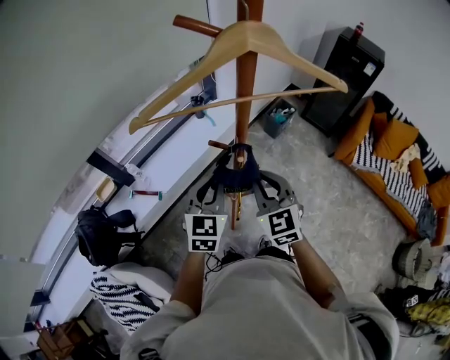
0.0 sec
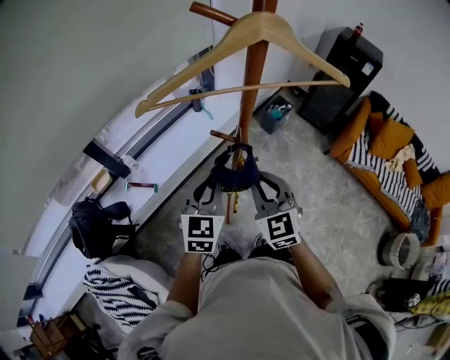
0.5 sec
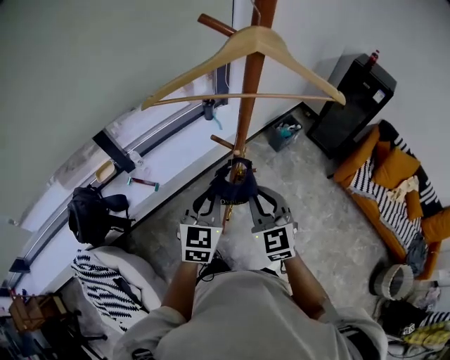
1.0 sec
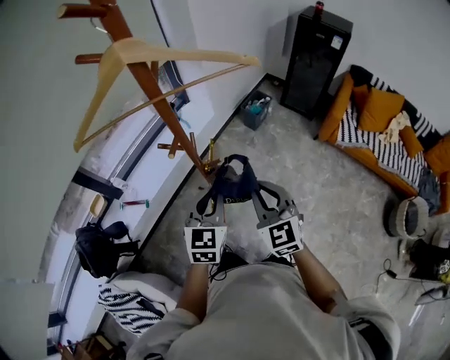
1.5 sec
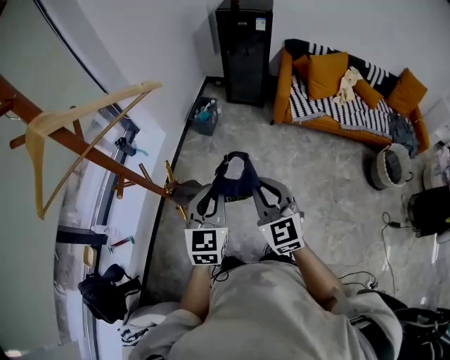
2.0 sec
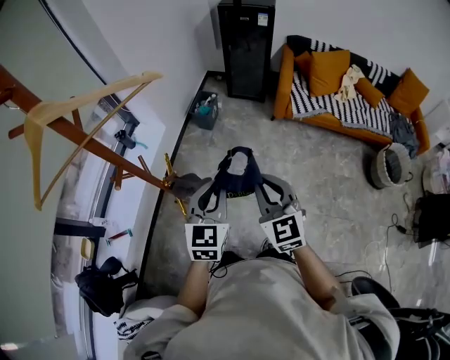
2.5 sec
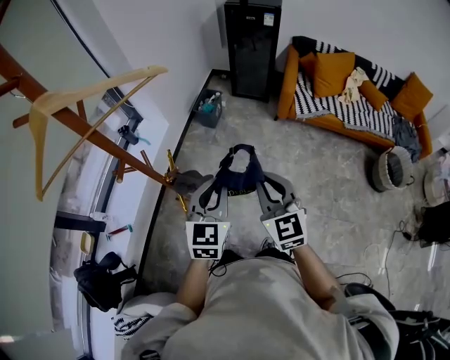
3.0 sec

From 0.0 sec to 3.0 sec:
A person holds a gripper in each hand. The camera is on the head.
From 0.0 sec to 1.5 sec: Both grippers move to the right and backward, about 15 cm.
From 1.5 sec to 3.0 sec: The grippers both shift to the right by roughly 15 cm. The right gripper rotates about 20 degrees.

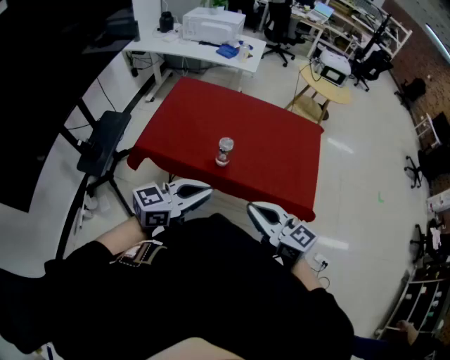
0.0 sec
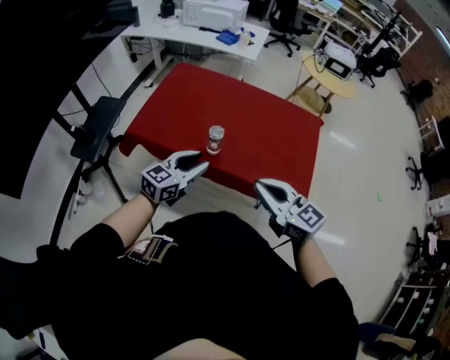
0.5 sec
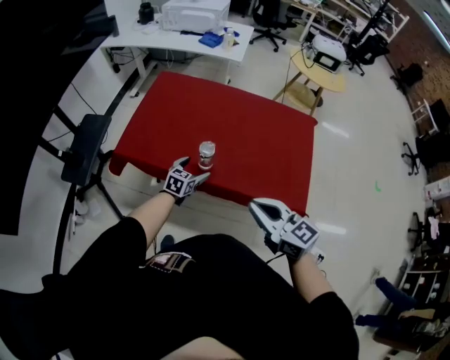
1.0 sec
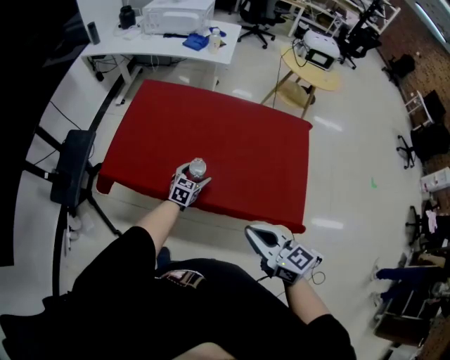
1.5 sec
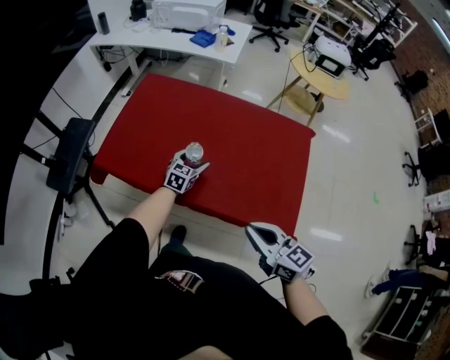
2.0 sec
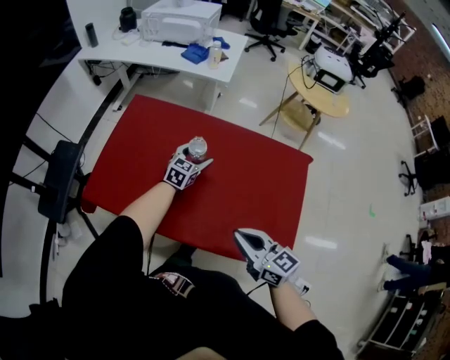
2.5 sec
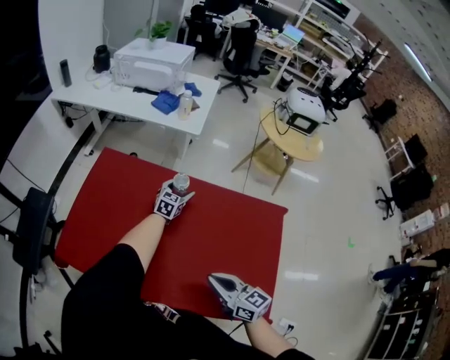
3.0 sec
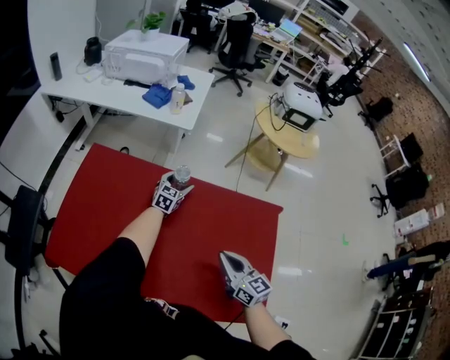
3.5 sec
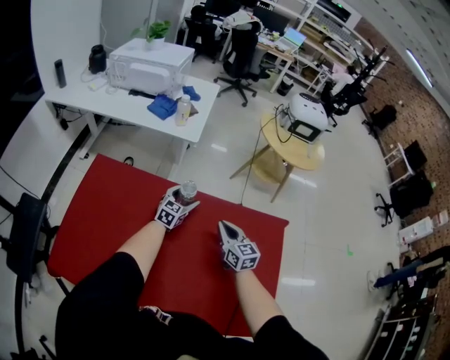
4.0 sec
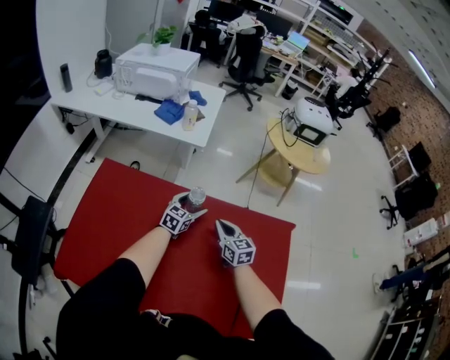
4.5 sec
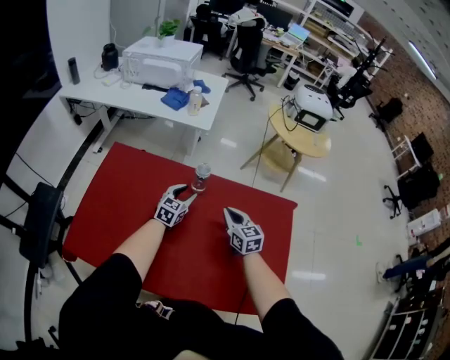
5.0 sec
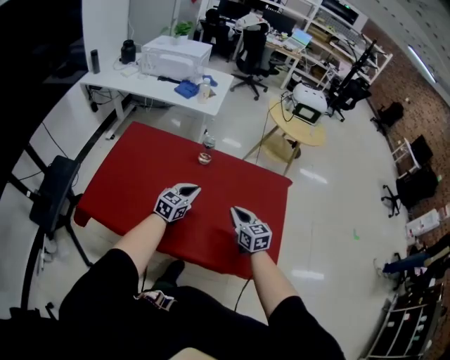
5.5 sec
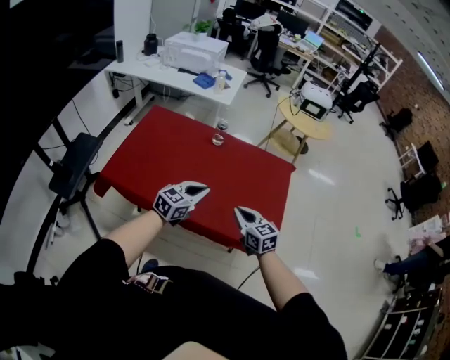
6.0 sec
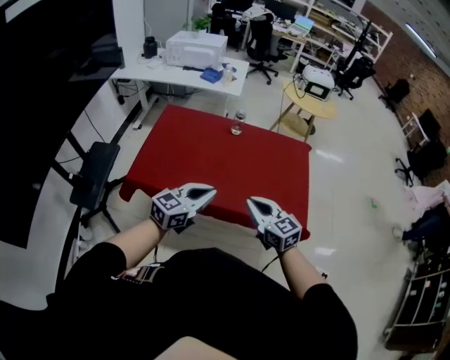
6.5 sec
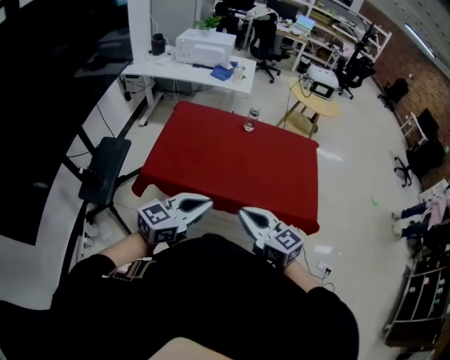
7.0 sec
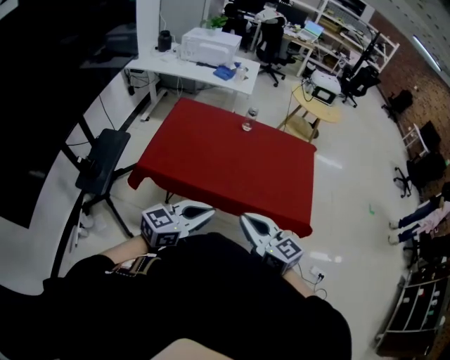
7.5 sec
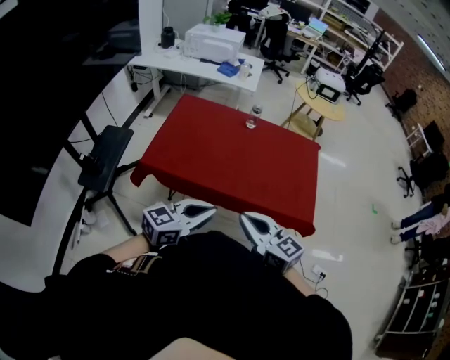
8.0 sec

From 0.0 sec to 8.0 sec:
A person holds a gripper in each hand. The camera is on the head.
From 0.0 sec to 2.0 sec: The left gripper goes some 50 cm forward and downward, turns by about 40 degrees, and opens its fingers. Meanwhile the right gripper shifts roughly 20 cm to the right, forward and downward.
From 2.0 sec to 4.0 sec: The grippers both shift forward by roughly 40 cm. The right gripper changes its angle by about 30 degrees.
From 4.0 sec to 6.0 sec: Both grippers are carried backward, some 50 cm. The left gripper goes approximately 20 cm upward, and closes.
From 6.0 sec to 8.0 sec: The right gripper goes some 30 cm backward, to the left and upward; the left gripper shifts roughly 30 cm backward and to the left.

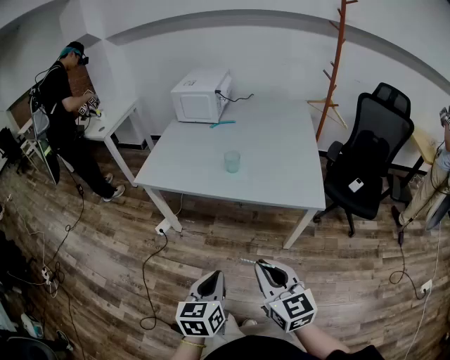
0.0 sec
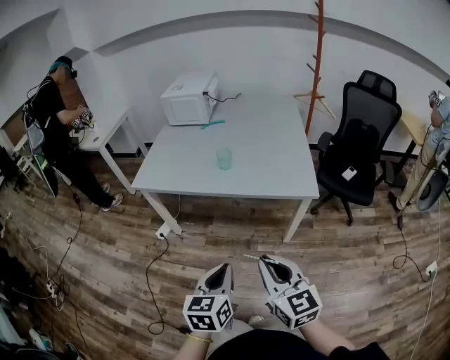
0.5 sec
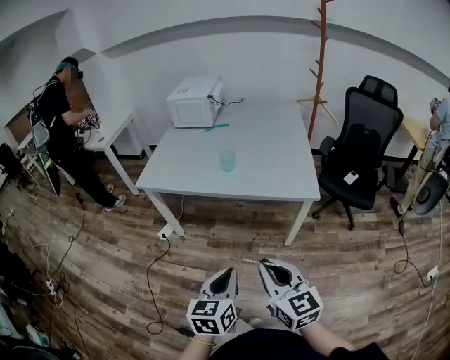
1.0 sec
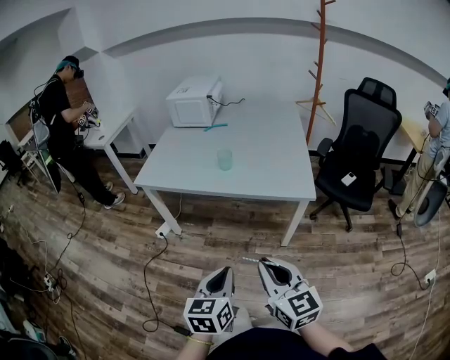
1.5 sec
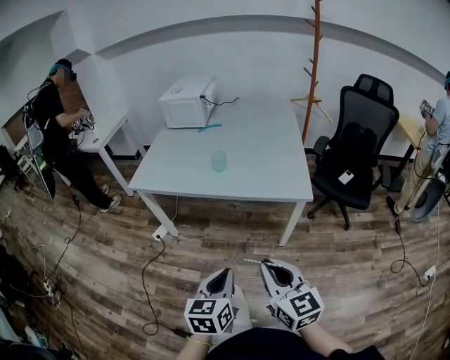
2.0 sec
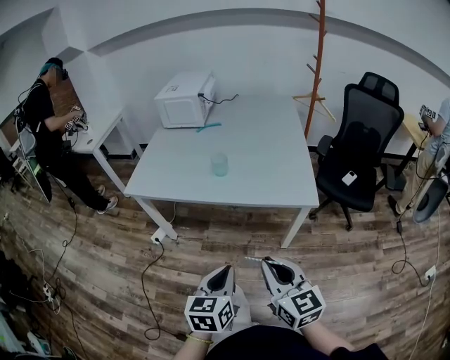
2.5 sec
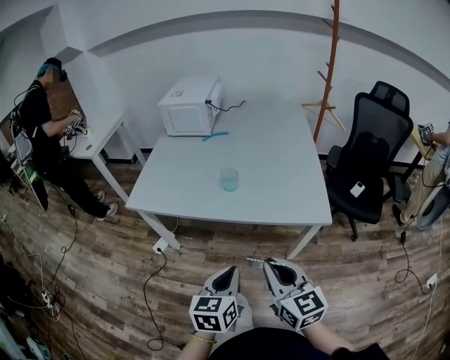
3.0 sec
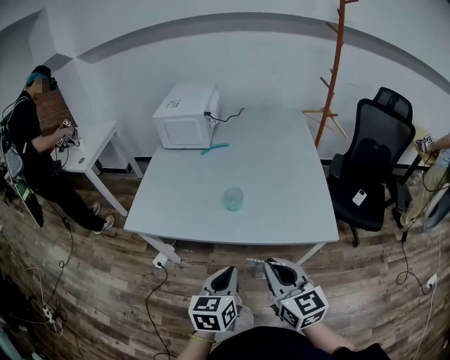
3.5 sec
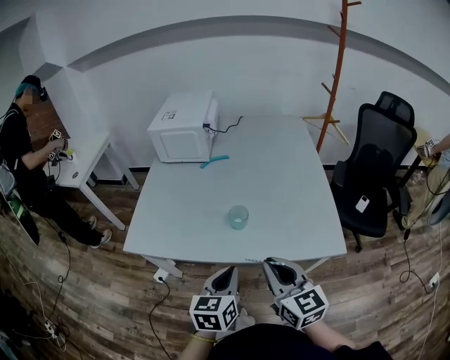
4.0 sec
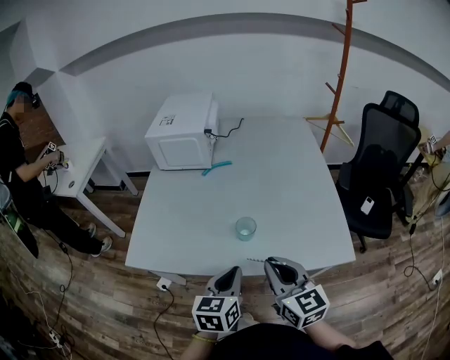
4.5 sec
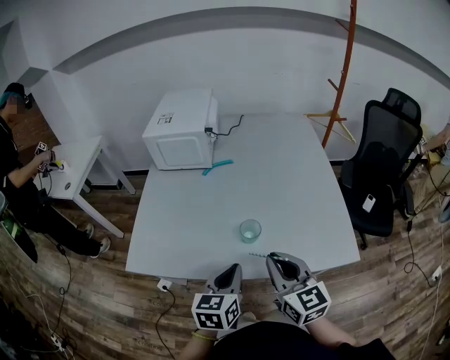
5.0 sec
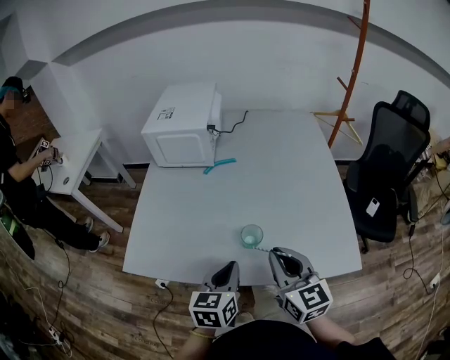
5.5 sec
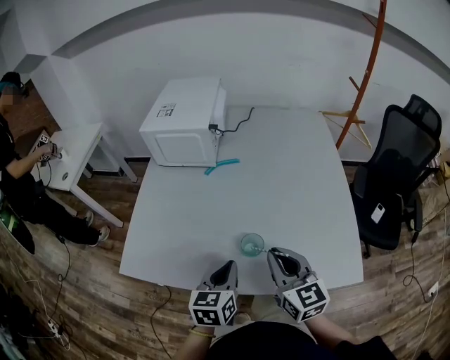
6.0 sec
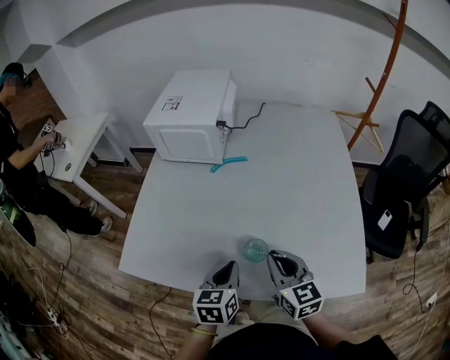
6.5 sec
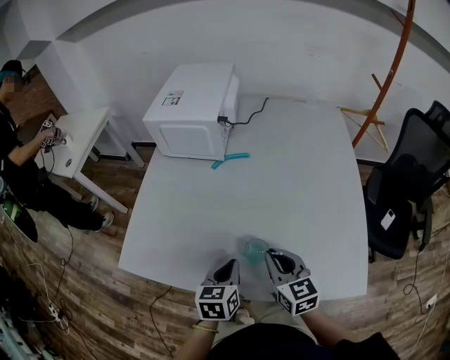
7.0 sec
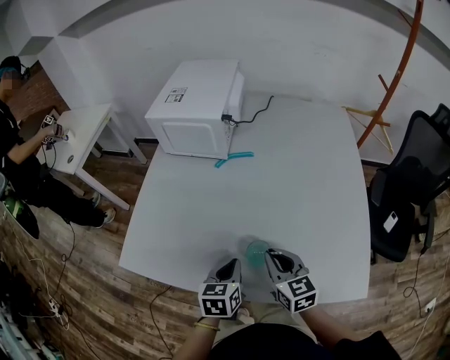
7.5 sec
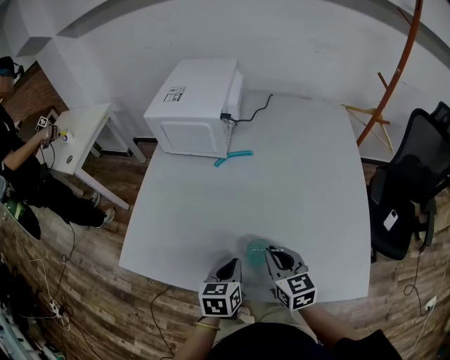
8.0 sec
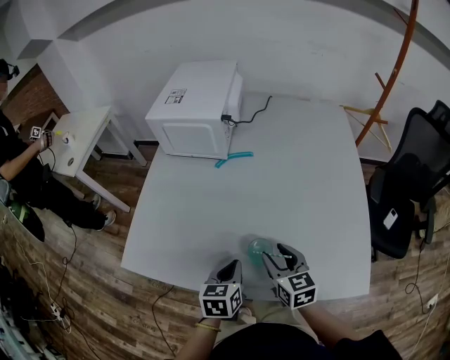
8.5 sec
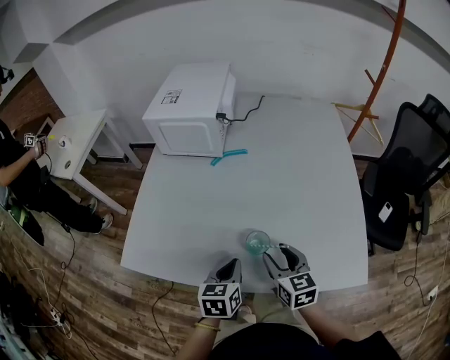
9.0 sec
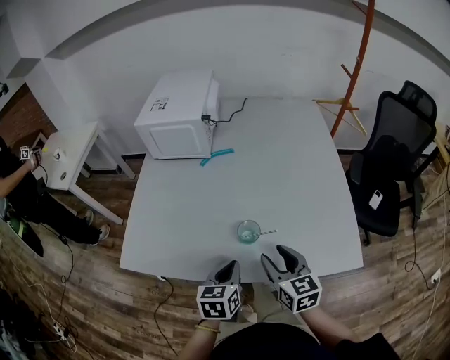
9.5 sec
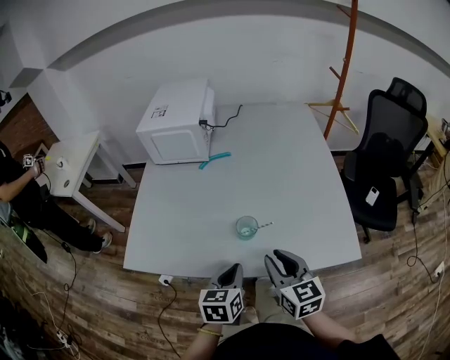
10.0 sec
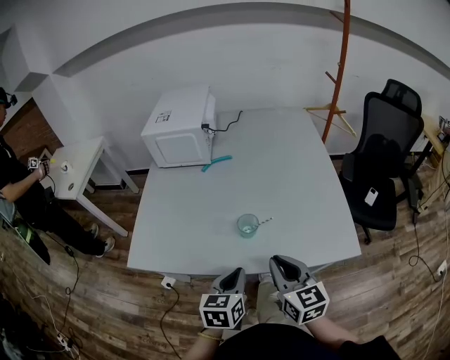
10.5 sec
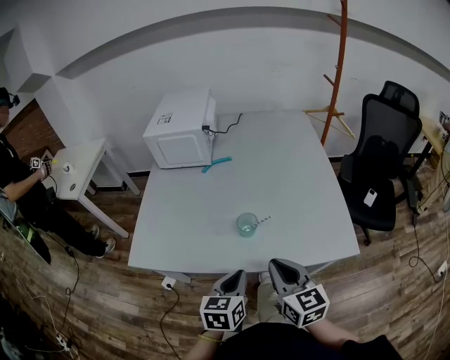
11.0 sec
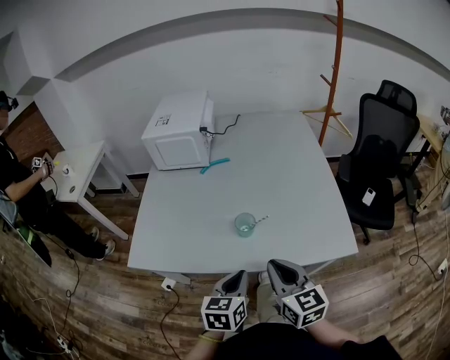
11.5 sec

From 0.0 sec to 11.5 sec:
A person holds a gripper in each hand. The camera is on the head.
From 0.0 sec to 2.0 sec: The two grippers go about 5 cm to the right.
From 2.0 sec to 4.0 sec: The two grippers go roughly 30 cm forward.
From 4.0 sec to 6.0 sec: Both grippers move forward, approximately 15 cm.
From 6.0 sec to 7.5 sec: The grippers both shift downward by about 10 cm.
From 7.5 sec to 9.5 sec: Both grippers move backward, about 5 cm. The right gripper opens up.
From 9.5 sec to 11.5 sec: The left gripper heads backward, covering some 10 cm. The right gripper moves backward and upward, some 10 cm, and closes up.

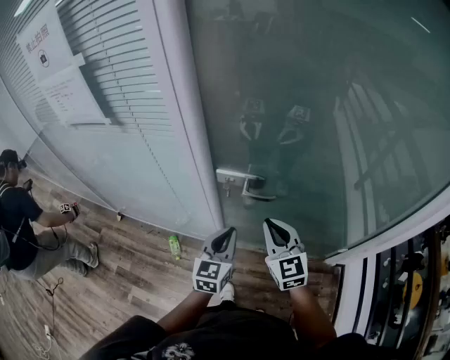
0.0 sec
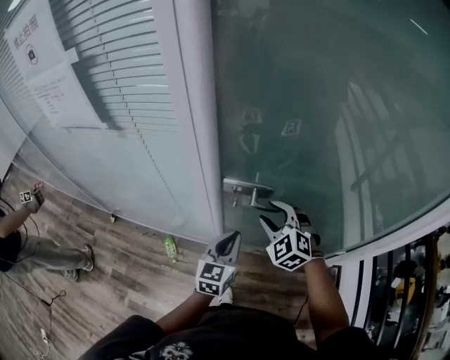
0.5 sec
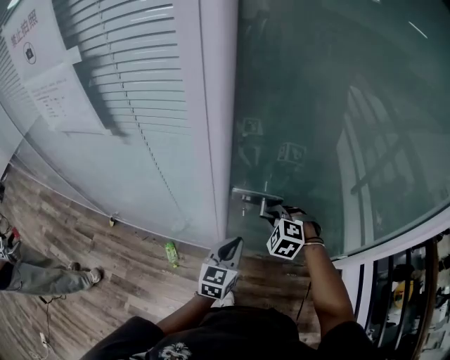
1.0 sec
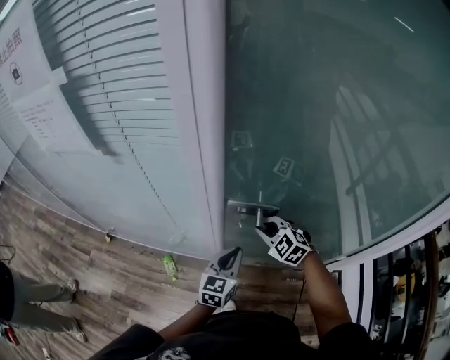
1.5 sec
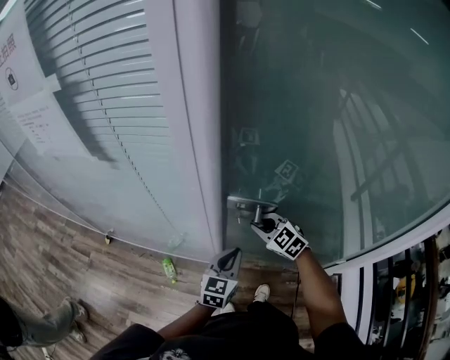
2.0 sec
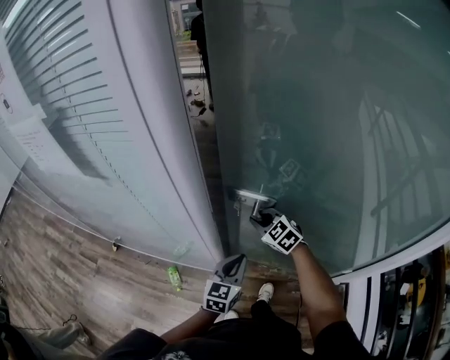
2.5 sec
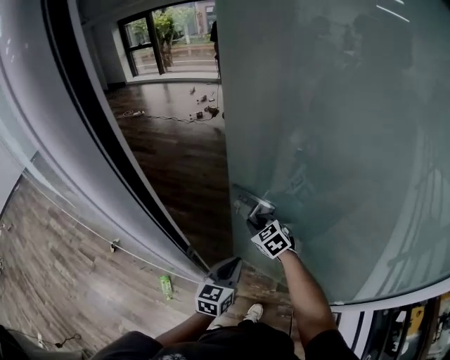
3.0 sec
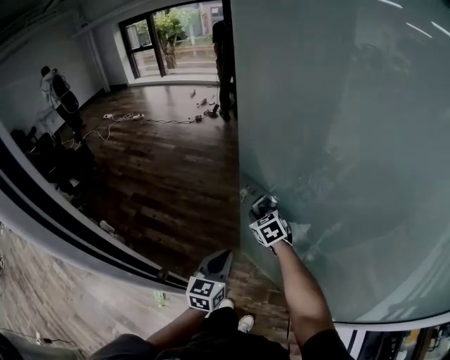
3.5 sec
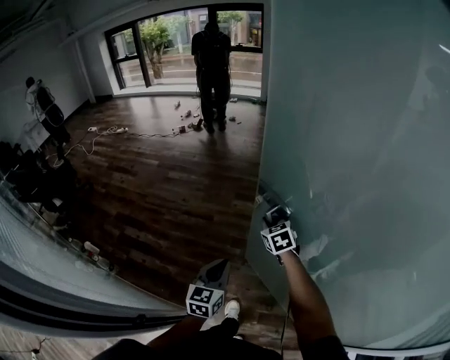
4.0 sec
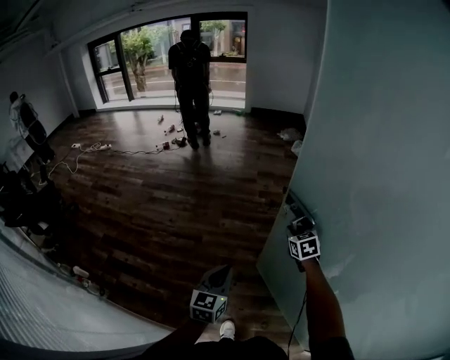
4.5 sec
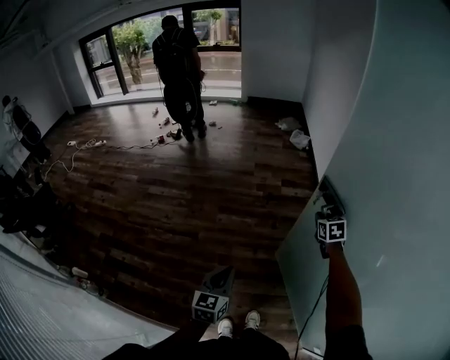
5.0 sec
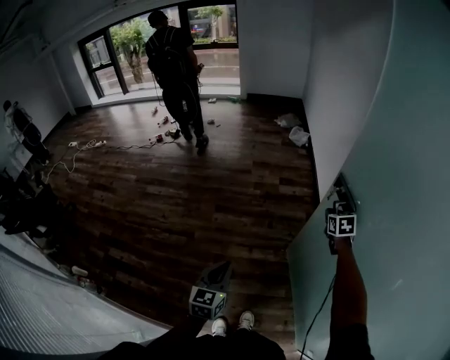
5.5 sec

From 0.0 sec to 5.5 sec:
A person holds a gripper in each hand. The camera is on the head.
From 0.0 sec to 2.0 sec: The left gripper travels forward and downward by roughly 10 cm. The right gripper shifts roughly 20 cm forward, downward and to the left, swivels roughly 40 degrees, and opens, then closes again.
From 2.0 sec to 3.5 sec: The grippers both shift forward and to the right by approximately 35 cm.
From 3.5 sec to 5.5 sec: The pair of grippers is taken forward and to the right, roughly 50 cm. The right gripper turns by roughly 40 degrees.
